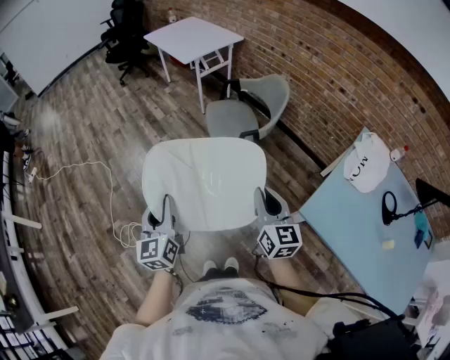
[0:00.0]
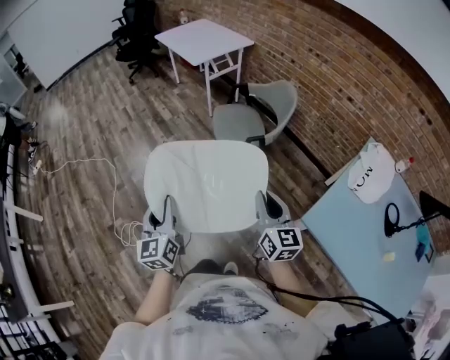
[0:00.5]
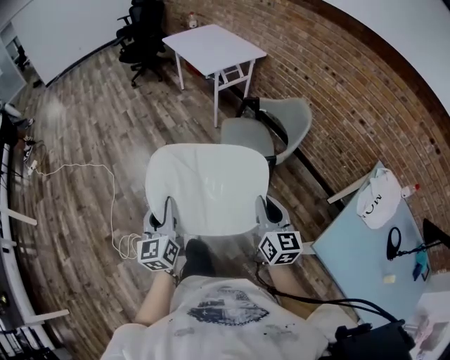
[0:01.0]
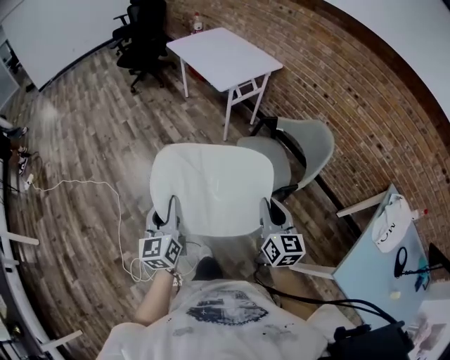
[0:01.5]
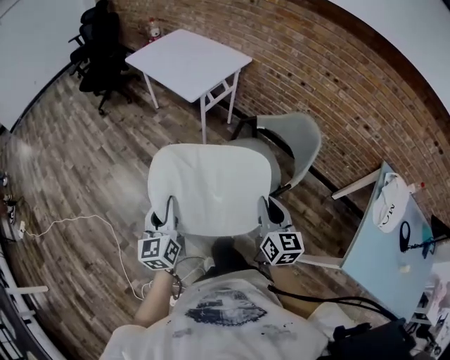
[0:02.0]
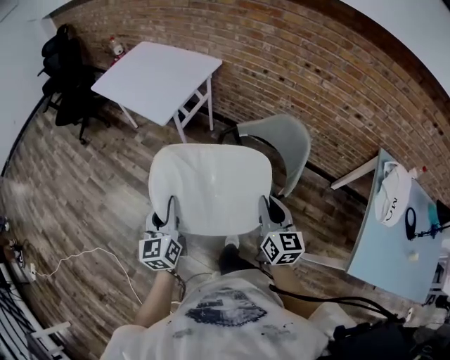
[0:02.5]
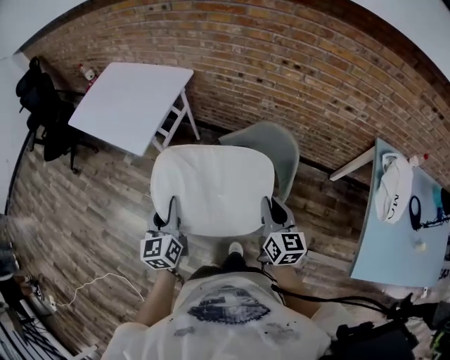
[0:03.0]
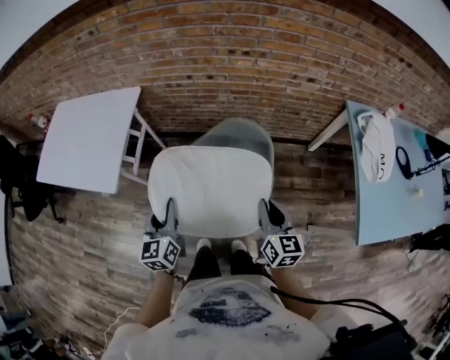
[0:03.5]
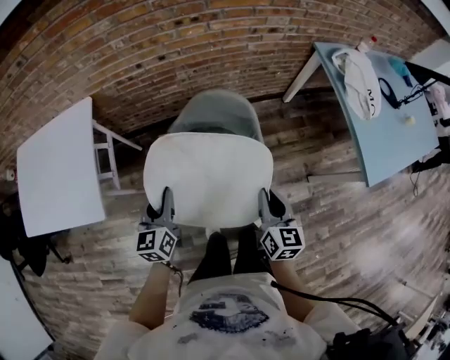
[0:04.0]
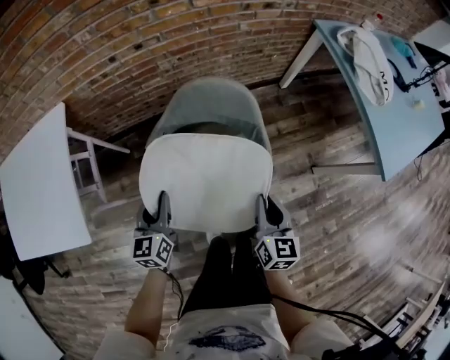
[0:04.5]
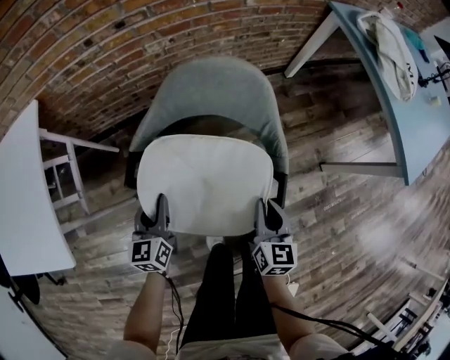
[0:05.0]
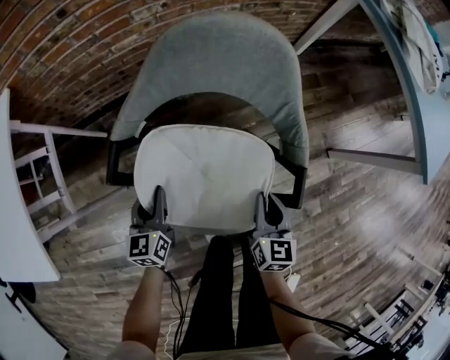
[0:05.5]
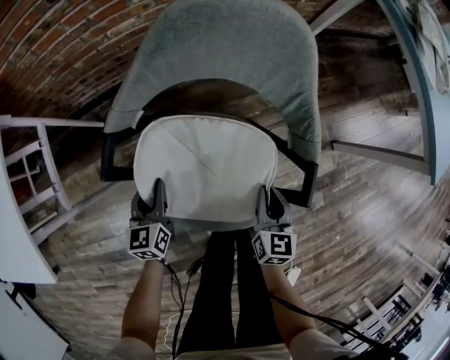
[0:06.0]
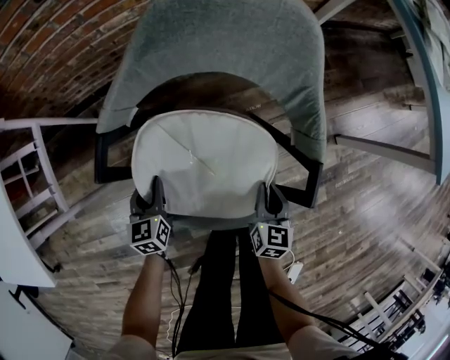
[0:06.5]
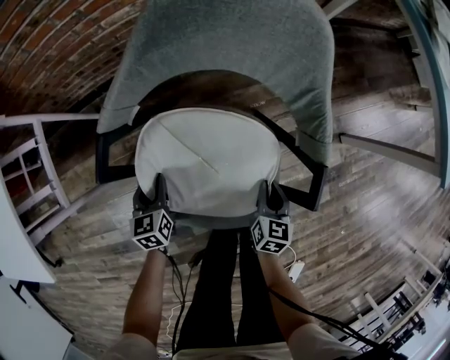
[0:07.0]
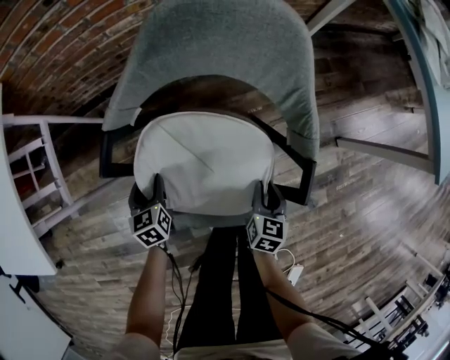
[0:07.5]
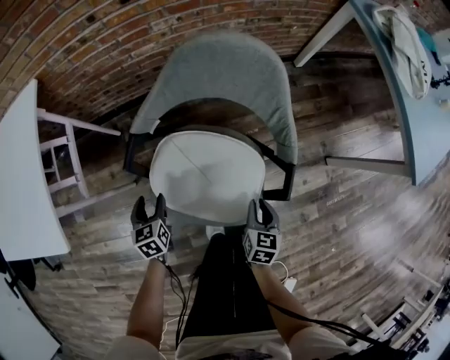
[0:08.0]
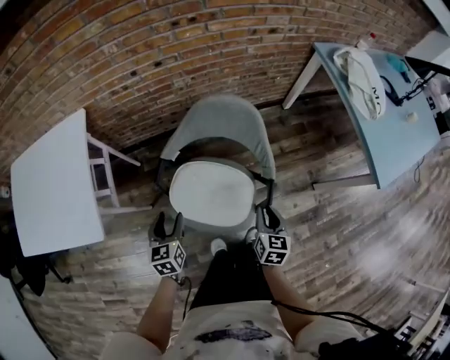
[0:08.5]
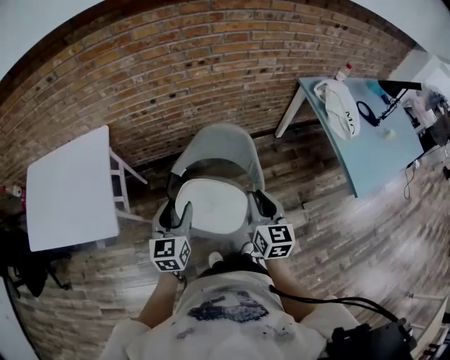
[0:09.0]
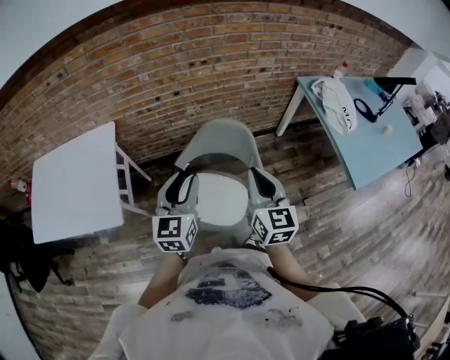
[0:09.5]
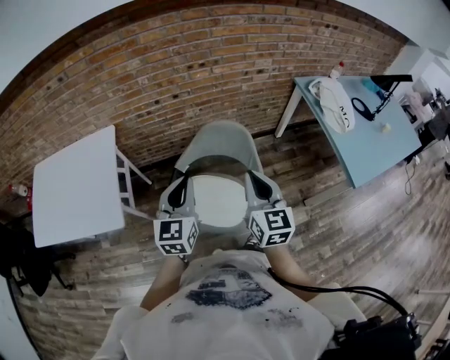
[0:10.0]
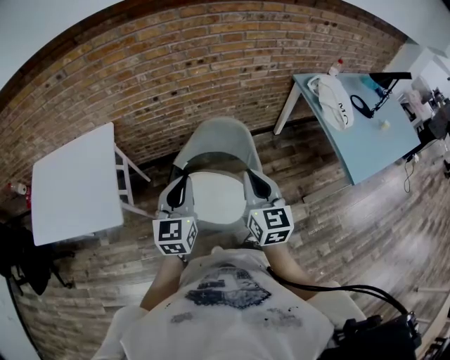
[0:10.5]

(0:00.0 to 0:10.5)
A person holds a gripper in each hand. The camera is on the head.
0:00.0 - 0:02.0: The two grippers travel together, forward, roughly 50 cm.
0:02.0 - 0:04.0: The right gripper shifts by some 30 cm, and changes its angle by roughly 60 degrees; the left gripper shifts by about 60 cm, and swivels some 60 degrees.
0:04.0 - 0:06.5: Both grippers move downward, about 50 cm. The right gripper changes its angle by some 20 degrees.
0:06.5 - 0:08.5: Both grippers move upward, roughly 30 cm. The left gripper opens.
0:08.5 - 0:10.5: The grippers both shift upward by roughly 35 cm. The left gripper rotates approximately 30 degrees, and closes up; the right gripper swivels approximately 30 degrees.

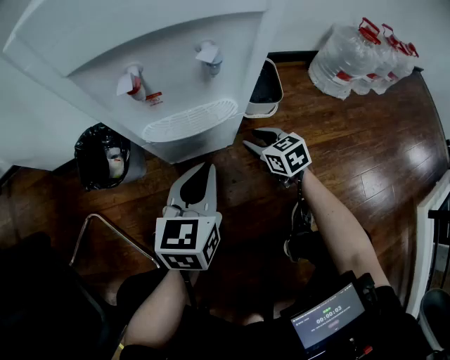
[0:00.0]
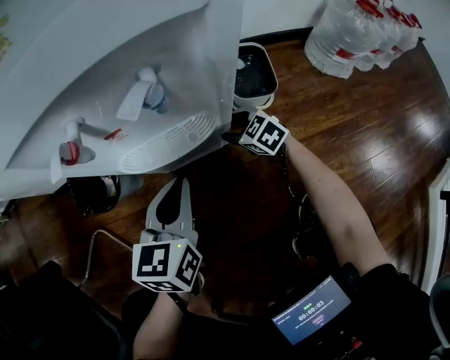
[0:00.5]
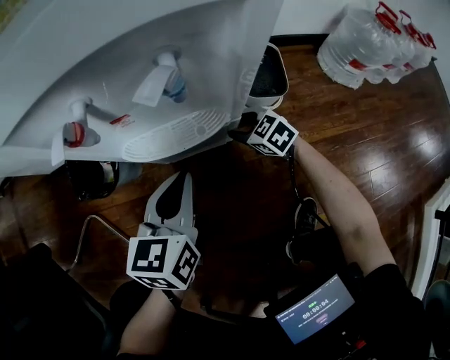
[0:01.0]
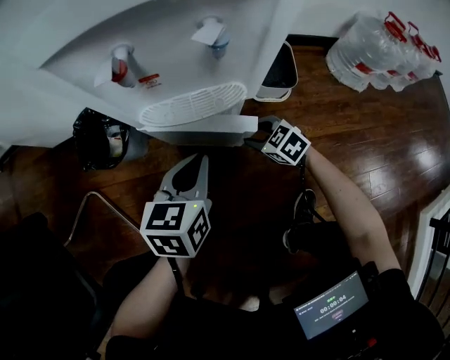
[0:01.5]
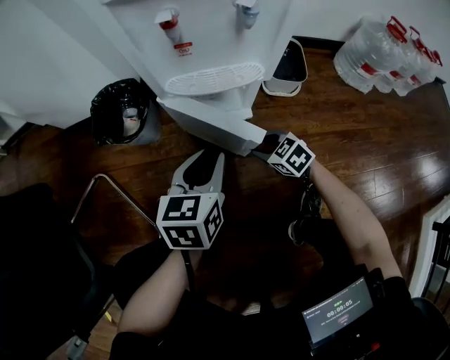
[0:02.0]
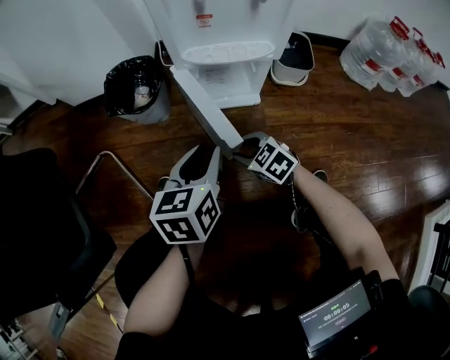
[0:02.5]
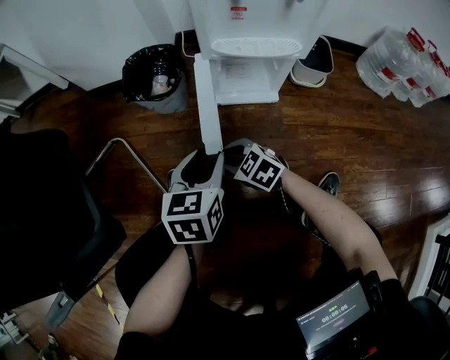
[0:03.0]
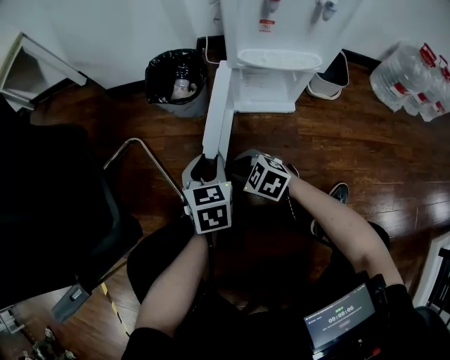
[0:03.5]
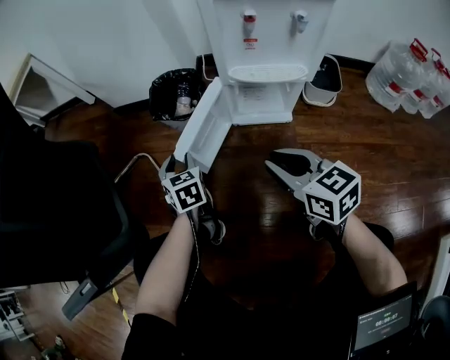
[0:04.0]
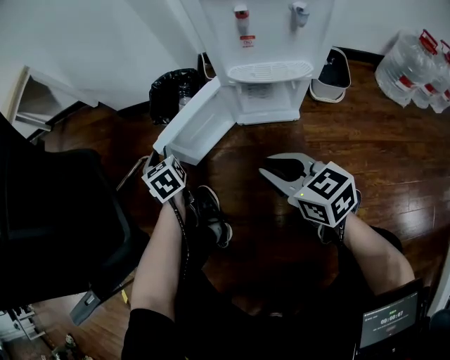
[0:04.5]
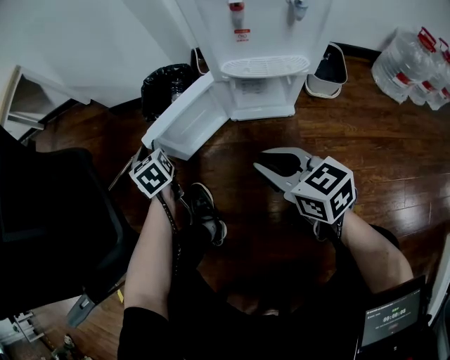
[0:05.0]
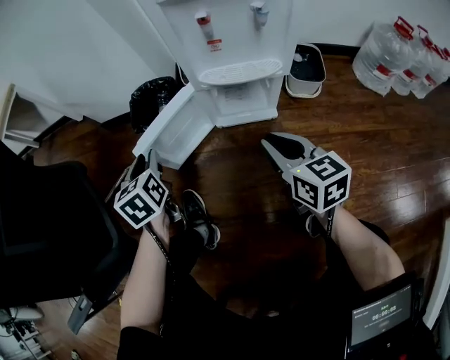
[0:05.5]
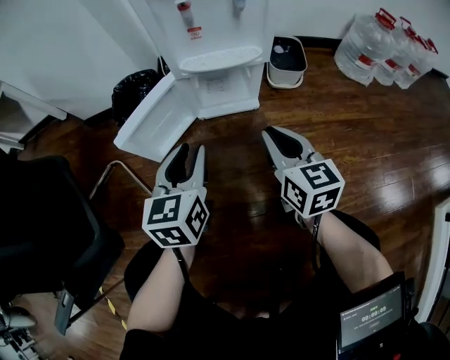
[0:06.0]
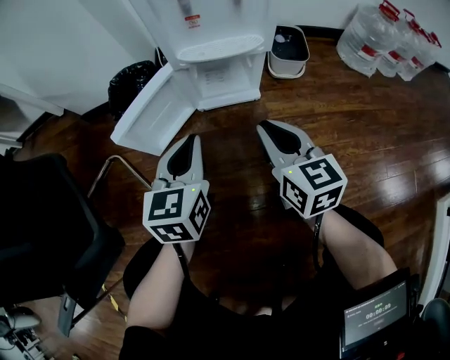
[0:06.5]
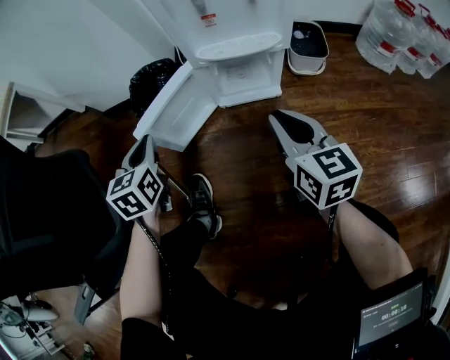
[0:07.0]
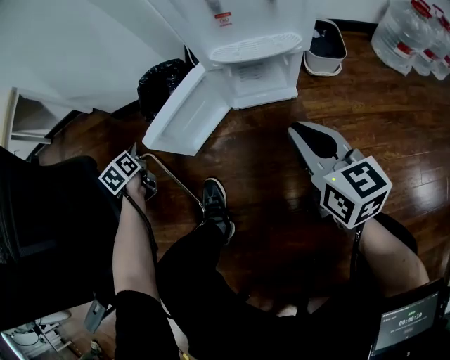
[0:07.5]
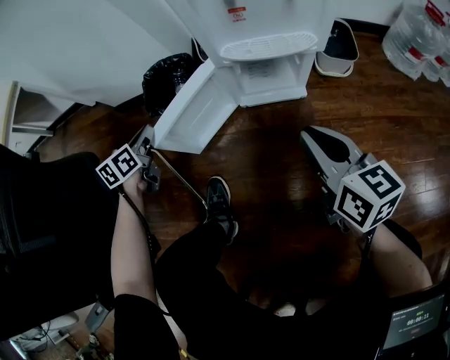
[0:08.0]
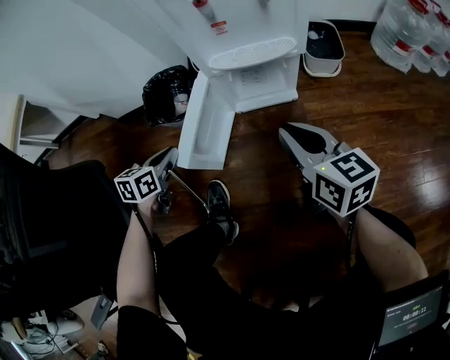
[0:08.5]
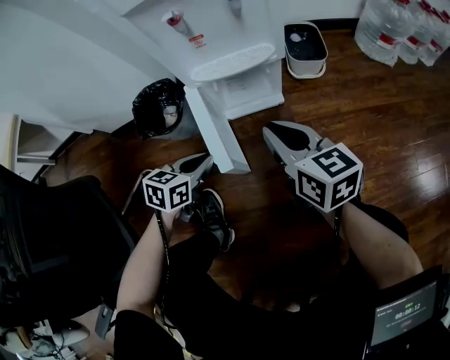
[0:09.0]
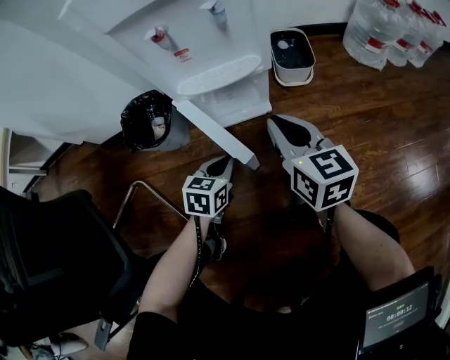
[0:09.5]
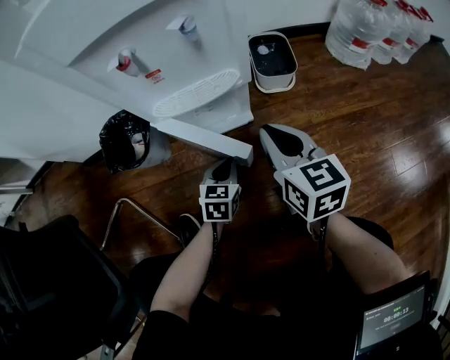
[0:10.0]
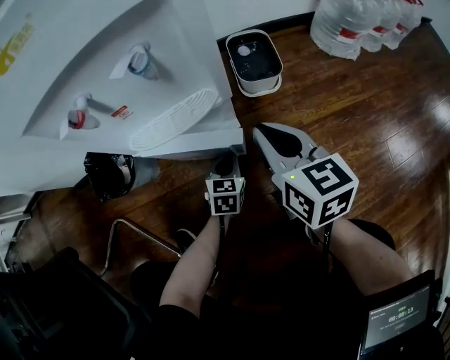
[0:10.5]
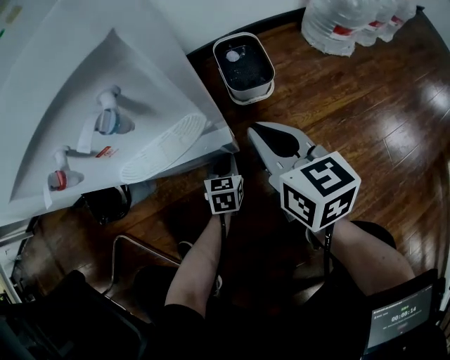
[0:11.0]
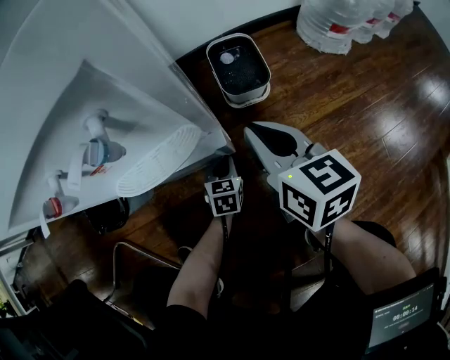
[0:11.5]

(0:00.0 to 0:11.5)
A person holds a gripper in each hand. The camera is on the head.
0:00.0 - 0:02.0: The right gripper moves backward, to the left and downward, roughly 10 cm, and changes its angle by approximately 30 degrees, while the left gripper shifts by about 5 cm, and opens.
0:02.0 - 0:04.0: The right gripper moves upward and to the left, about 30 cm, rotates about 30 degrees, and closes; the left gripper goes roughly 25 cm to the left, and changes its angle by roughly 40 degrees.
0:04.0 - 0:06.0: The right gripper moves some 10 cm, and turns by approximately 30 degrees. The left gripper shifts by about 25 cm, and turns by some 40 degrees.
0:06.0 - 0:07.5: The left gripper goes approximately 40 cm to the left, forward and downward, swivels about 30 degrees, and closes its fingers.
0:07.5 - 0:09.5: The right gripper shifts by about 5 cm, while the left gripper changes place by approximately 40 cm, and swivels approximately 50 degrees.
0:09.5 - 0:11.5: The left gripper moves forward, downward and to the right, roughly 25 cm. Meanwhile the right gripper travels forward and to the right by approximately 15 cm.

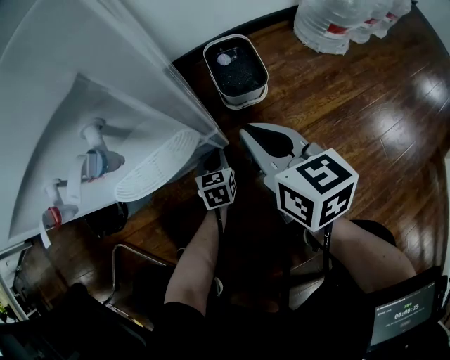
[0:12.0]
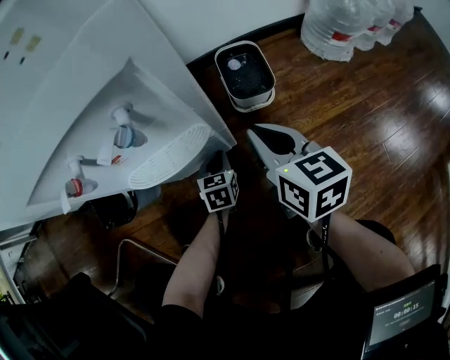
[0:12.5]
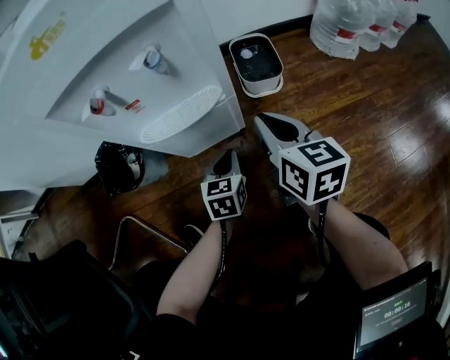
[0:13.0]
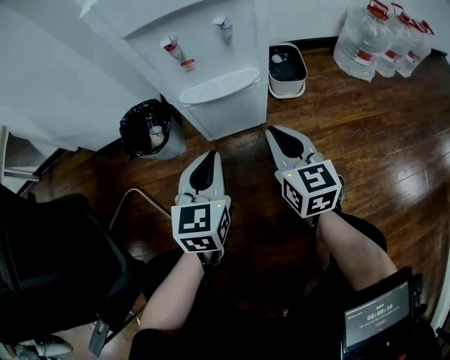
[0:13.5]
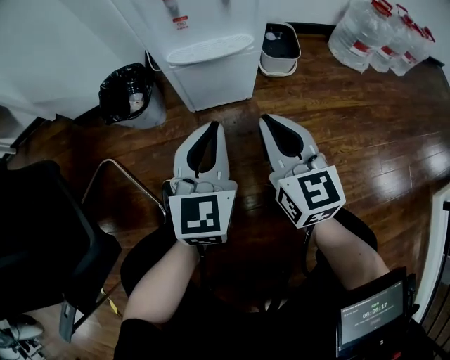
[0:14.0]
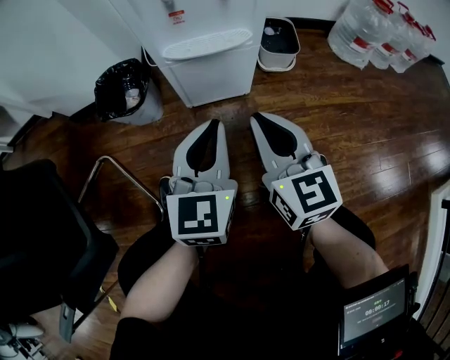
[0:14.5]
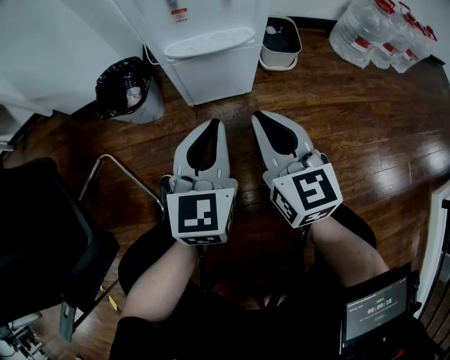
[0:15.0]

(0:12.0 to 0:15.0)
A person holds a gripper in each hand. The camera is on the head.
0:12.0 - 0:13.5: The right gripper shifts approximately 20 cm backward and to the left. The left gripper heads upward, backward and to the left, covering some 40 cm, and turns by roughly 30 degrees.
0:13.5 - 0:15.0: The right gripper shifts some 5 cm backward.

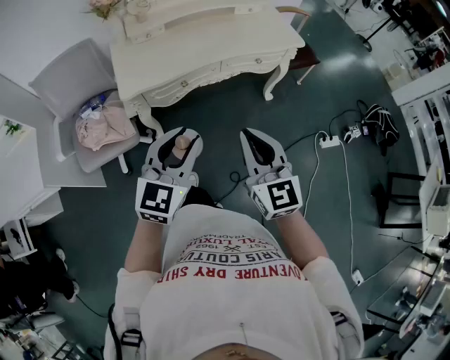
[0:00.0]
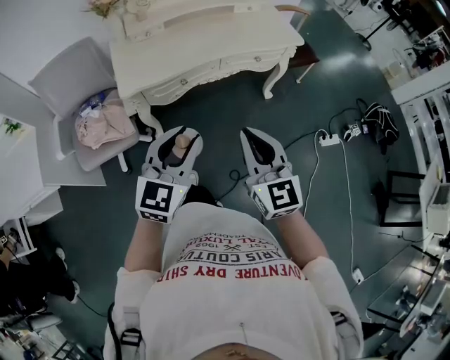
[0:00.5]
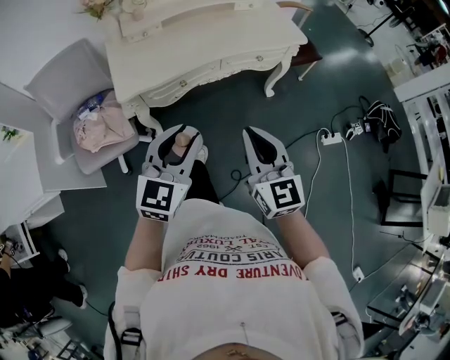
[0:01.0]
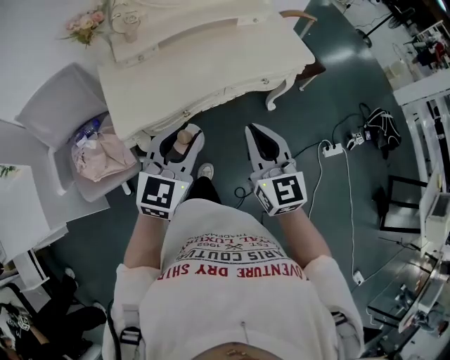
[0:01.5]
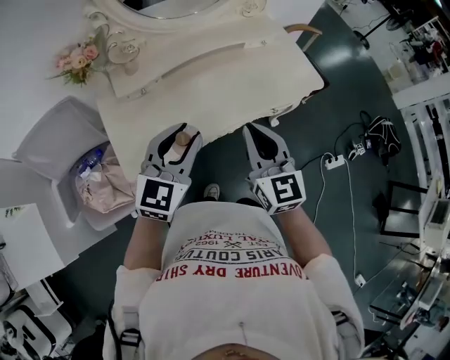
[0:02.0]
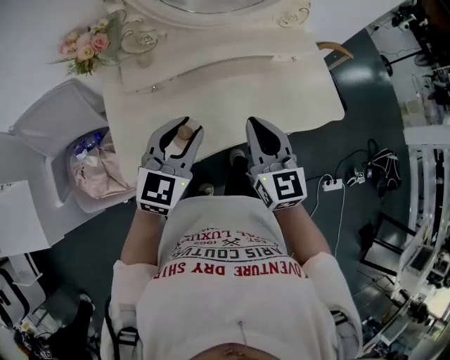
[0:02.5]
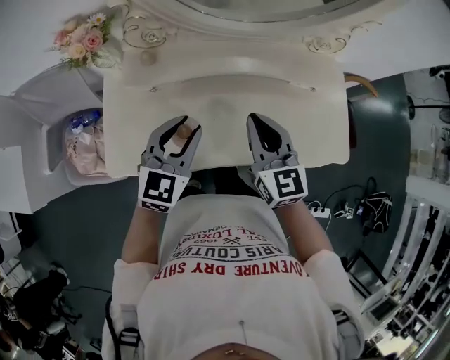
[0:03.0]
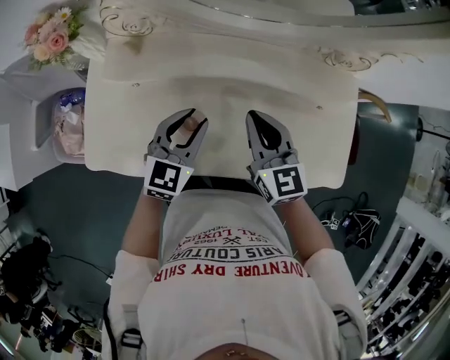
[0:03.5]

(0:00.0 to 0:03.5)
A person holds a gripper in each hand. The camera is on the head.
0:00.0 - 0:02.0: The two grippers go roughly 40 cm forward.
0:02.0 - 0:03.5: The right gripper shifts by approximately 35 cm, and changes its angle by roughly 30 degrees. Meanwhile the left gripper moves approximately 30 cm, and changes its angle by roughly 30 degrees.
